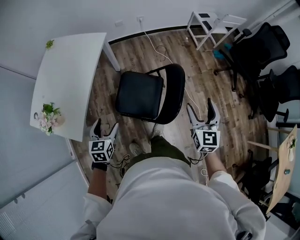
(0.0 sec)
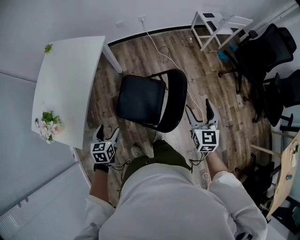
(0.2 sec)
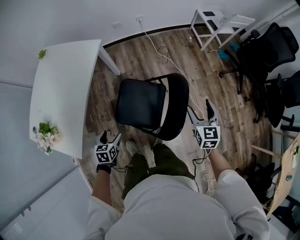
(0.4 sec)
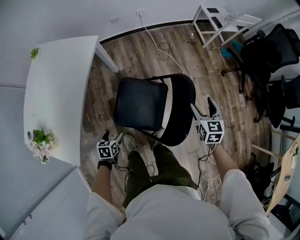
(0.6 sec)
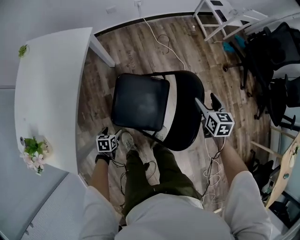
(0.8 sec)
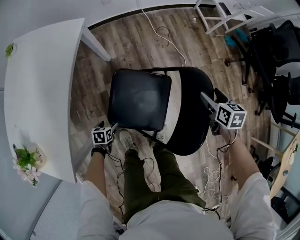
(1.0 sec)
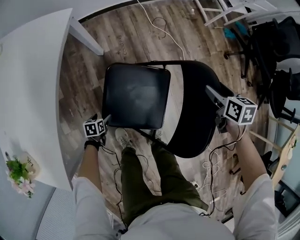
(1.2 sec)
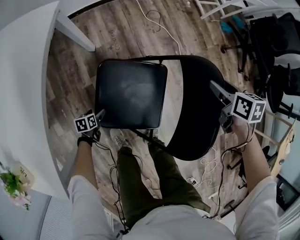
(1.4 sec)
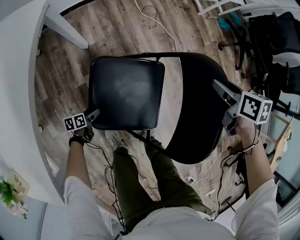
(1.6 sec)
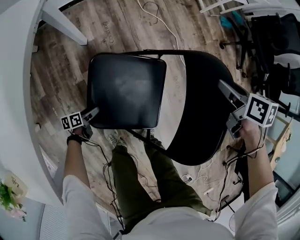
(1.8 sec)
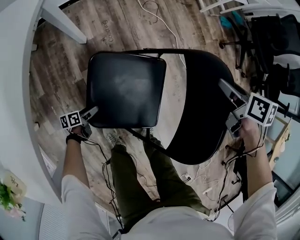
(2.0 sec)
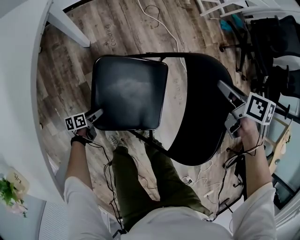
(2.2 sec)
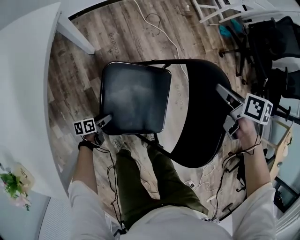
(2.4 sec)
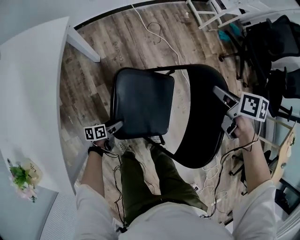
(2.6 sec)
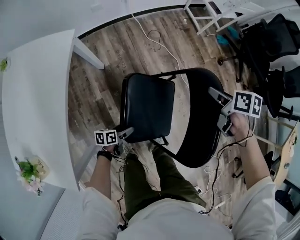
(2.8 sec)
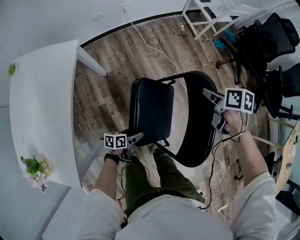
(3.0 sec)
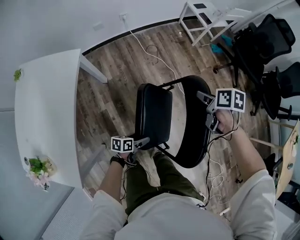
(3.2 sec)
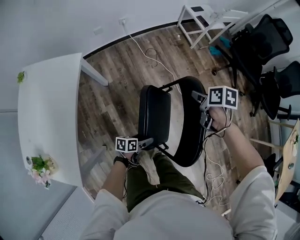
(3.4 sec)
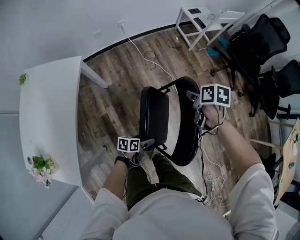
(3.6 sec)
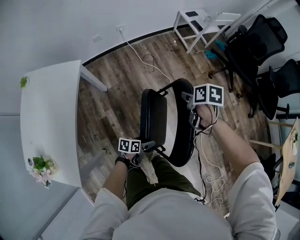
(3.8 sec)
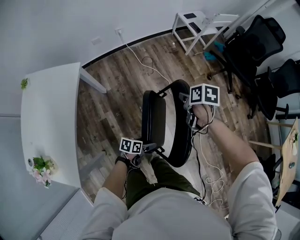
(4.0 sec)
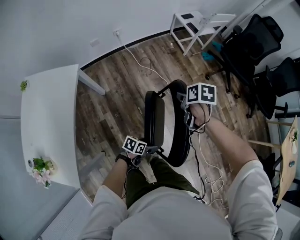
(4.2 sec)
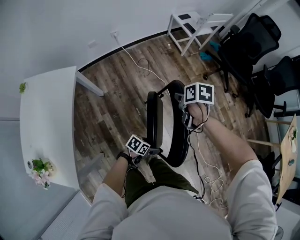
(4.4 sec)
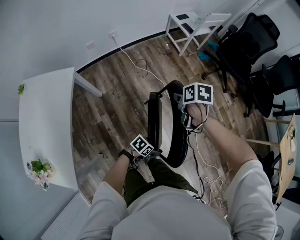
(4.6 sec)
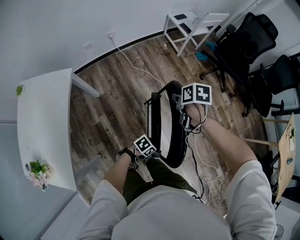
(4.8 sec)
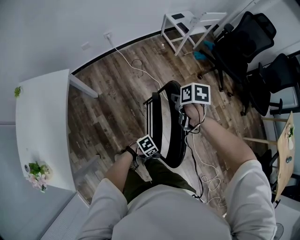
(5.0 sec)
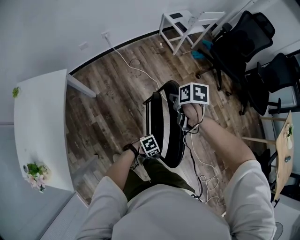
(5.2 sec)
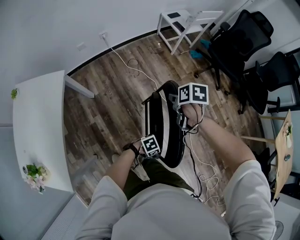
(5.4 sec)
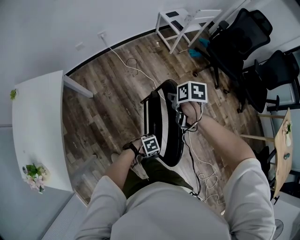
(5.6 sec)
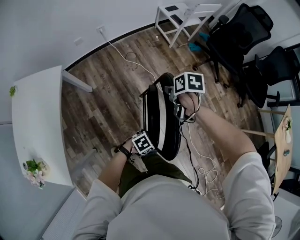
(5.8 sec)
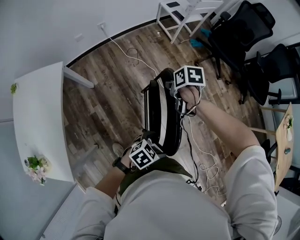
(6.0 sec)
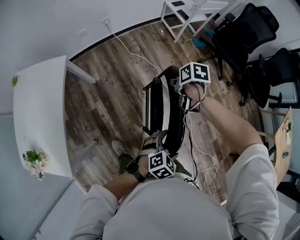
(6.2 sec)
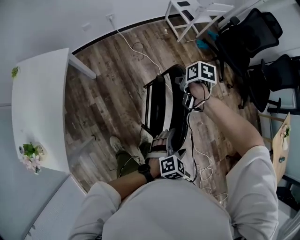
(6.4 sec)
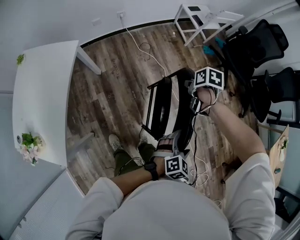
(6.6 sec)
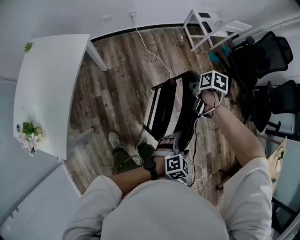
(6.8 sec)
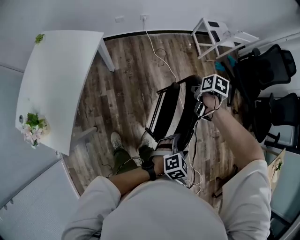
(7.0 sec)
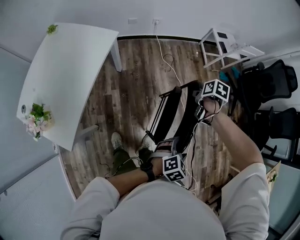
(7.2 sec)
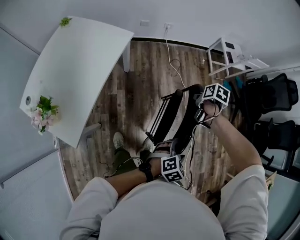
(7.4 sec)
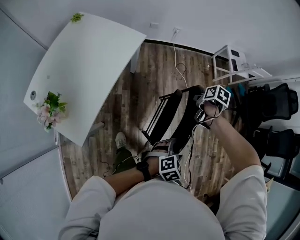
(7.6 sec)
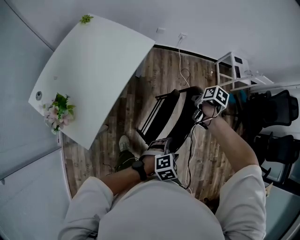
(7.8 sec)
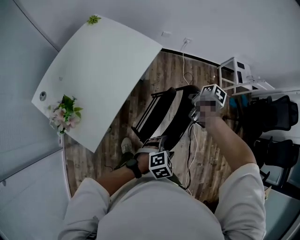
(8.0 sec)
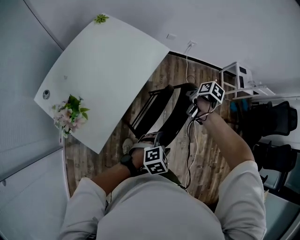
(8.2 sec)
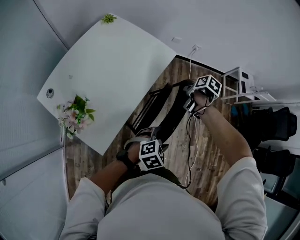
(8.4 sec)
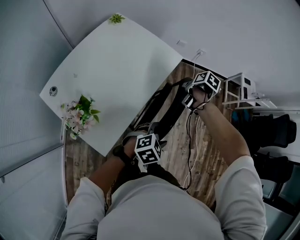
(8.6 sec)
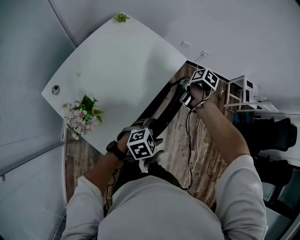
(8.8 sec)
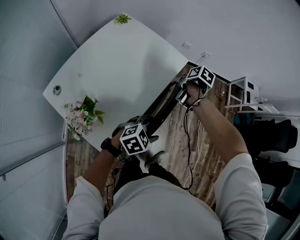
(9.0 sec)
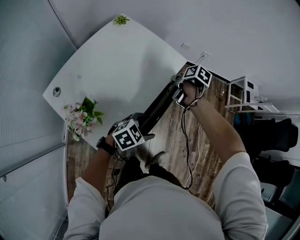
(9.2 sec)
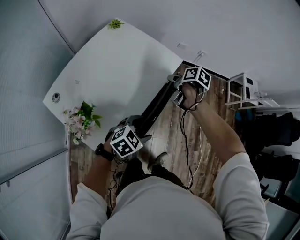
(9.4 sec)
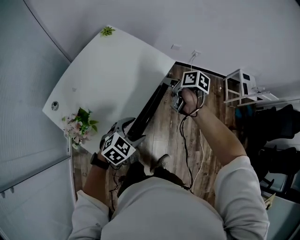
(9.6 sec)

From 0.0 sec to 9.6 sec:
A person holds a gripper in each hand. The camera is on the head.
From 0.0 sec to 1.6 sec: The left gripper shifts some 60 cm downward, and rotates some 50 degrees. Meanwhile the right gripper shifts approximately 40 cm downward and forward, angles its fingers downward, by some 40 degrees, and closes.
From 1.6 sec to 3.2 sec: The left gripper moves upward and to the right, some 35 cm, and changes its angle by about 20 degrees. Meanwhile the right gripper heads upward, covering roughly 15 cm.
From 3.2 sec to 4.8 sec: The right gripper ends up roughly 5 cm from where it was. Meanwhile the left gripper shifts by some 20 cm, and changes its angle by approximately 50 degrees.
From 4.8 sec to 6.4 sec: The left gripper goes about 20 cm upward, and changes its angle by roughly 50 degrees.
From 6.4 sec to 8.0 sec: The grippers both shift to the left by about 35 cm. The left gripper closes up.
From 8.0 sec to 9.6 sec: The two grippers go approximately 25 cm to the left. The right gripper rotates about 30 degrees, and opens up.

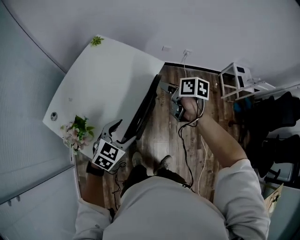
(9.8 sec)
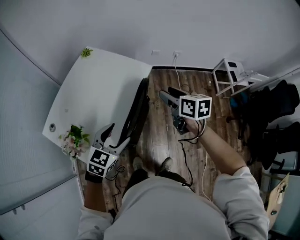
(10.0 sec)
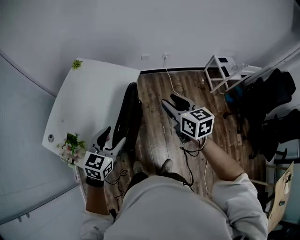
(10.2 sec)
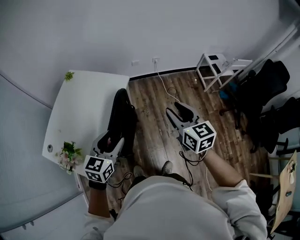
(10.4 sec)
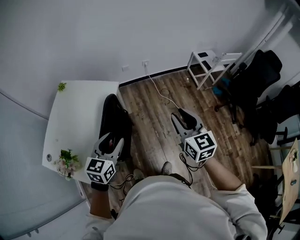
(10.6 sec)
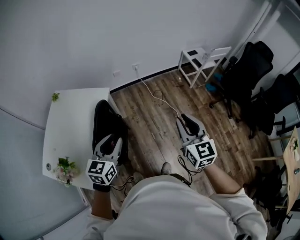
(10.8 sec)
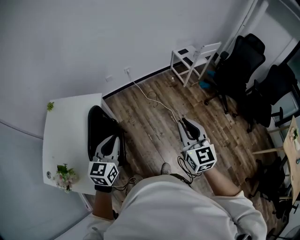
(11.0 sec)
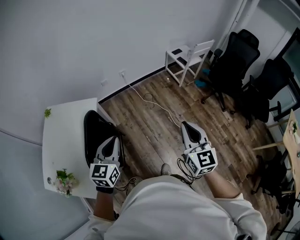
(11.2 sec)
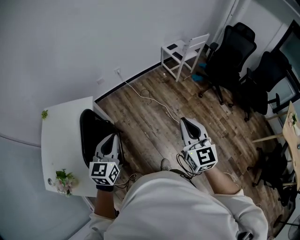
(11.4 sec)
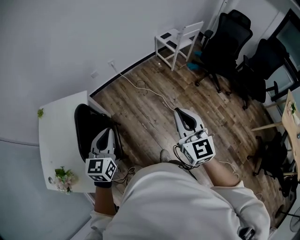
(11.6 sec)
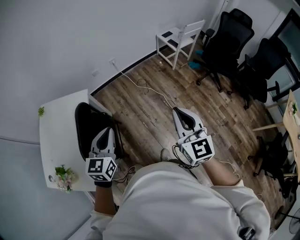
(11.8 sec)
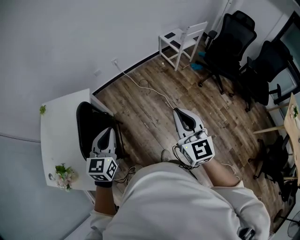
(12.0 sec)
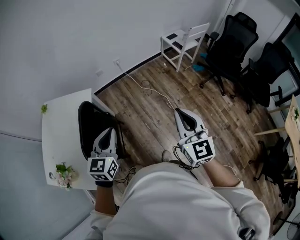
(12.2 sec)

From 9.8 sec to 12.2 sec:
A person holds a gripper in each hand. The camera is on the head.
From 9.8 sec to 11.0 sec: The left gripper moves approximately 25 cm, swivels some 20 degrees, and closes. The right gripper shifts by about 50 cm, tips its fingers upward by about 30 degrees, and closes.
From 11.0 sec to 12.2 sec: Both grippers travel together to the right, roughly 5 cm.

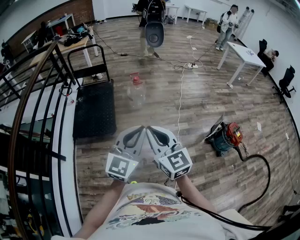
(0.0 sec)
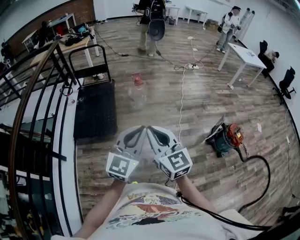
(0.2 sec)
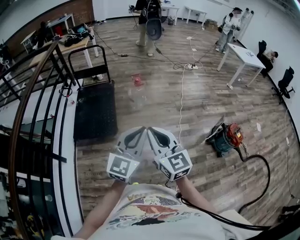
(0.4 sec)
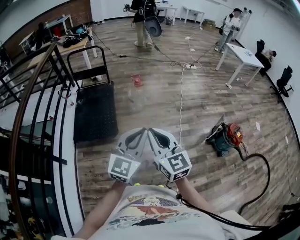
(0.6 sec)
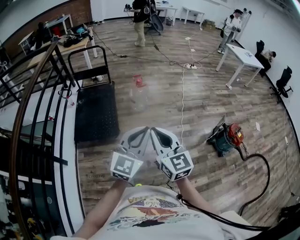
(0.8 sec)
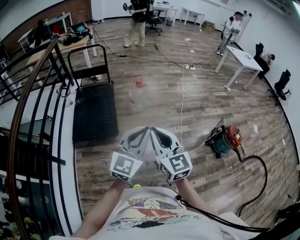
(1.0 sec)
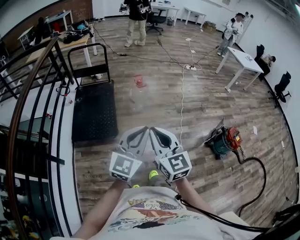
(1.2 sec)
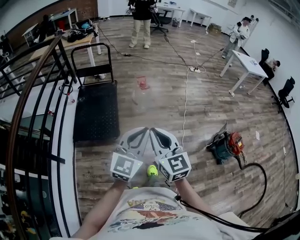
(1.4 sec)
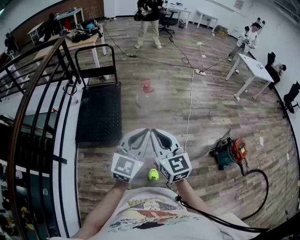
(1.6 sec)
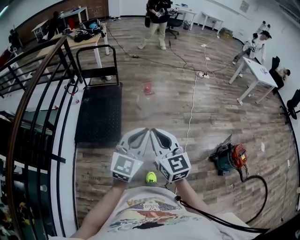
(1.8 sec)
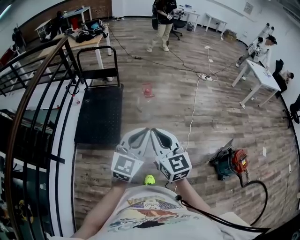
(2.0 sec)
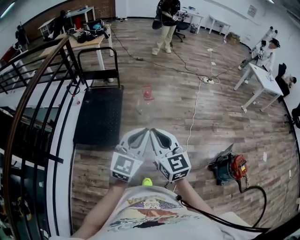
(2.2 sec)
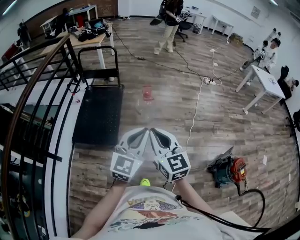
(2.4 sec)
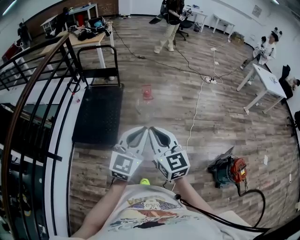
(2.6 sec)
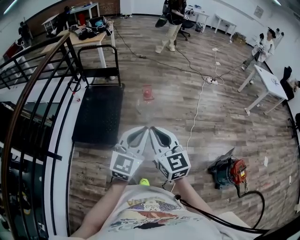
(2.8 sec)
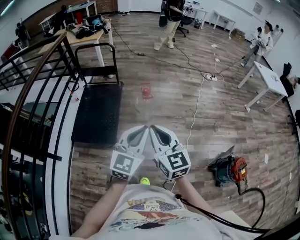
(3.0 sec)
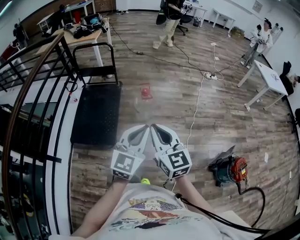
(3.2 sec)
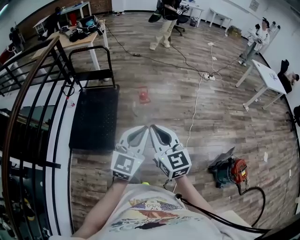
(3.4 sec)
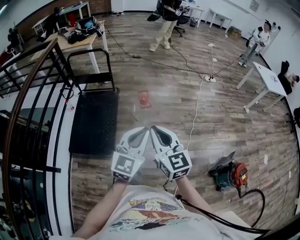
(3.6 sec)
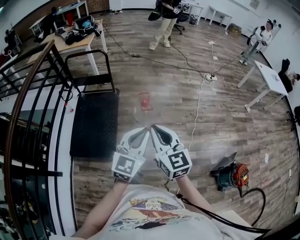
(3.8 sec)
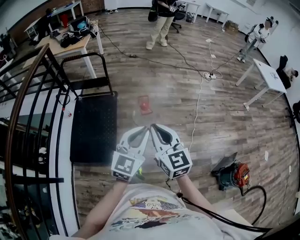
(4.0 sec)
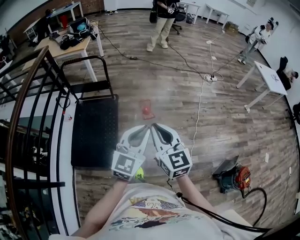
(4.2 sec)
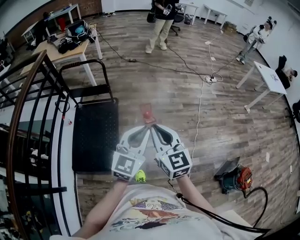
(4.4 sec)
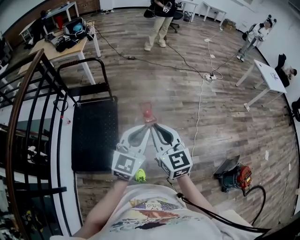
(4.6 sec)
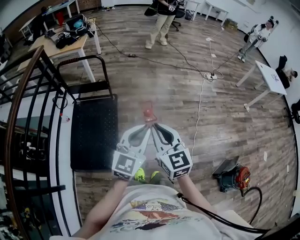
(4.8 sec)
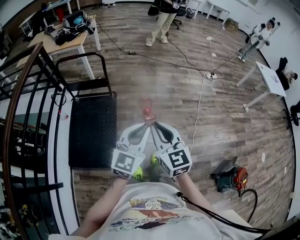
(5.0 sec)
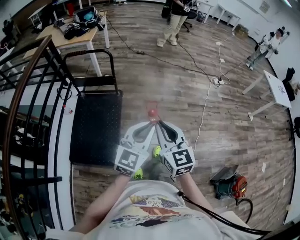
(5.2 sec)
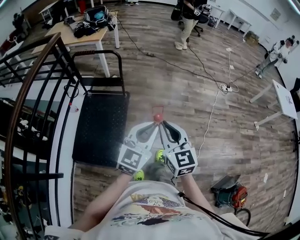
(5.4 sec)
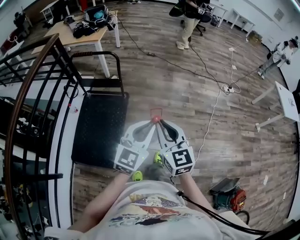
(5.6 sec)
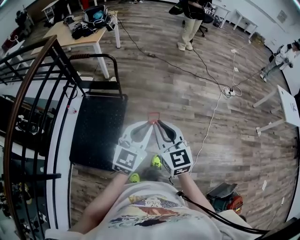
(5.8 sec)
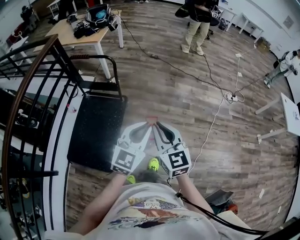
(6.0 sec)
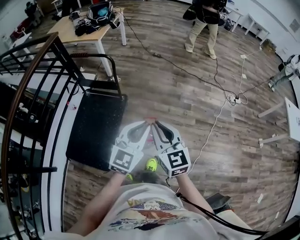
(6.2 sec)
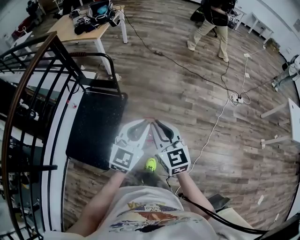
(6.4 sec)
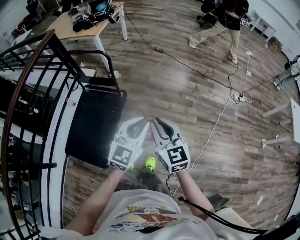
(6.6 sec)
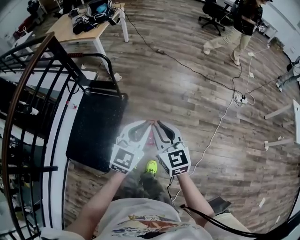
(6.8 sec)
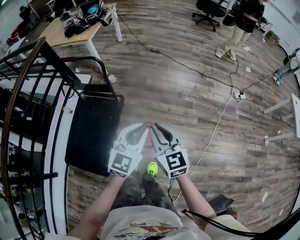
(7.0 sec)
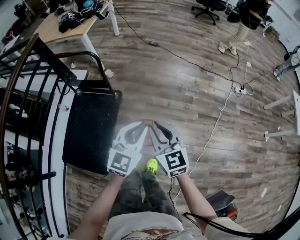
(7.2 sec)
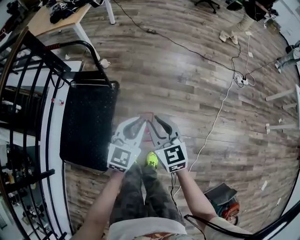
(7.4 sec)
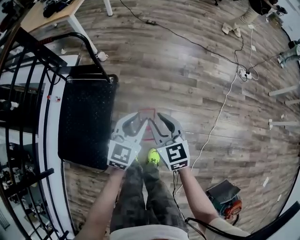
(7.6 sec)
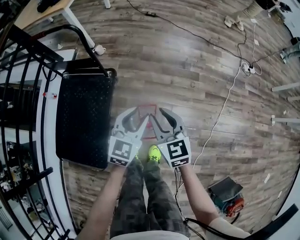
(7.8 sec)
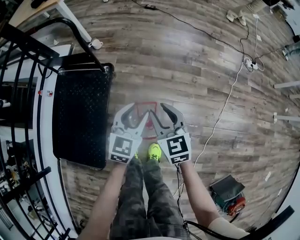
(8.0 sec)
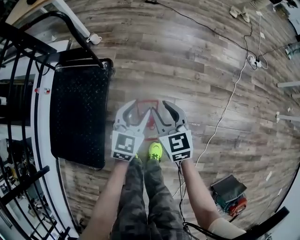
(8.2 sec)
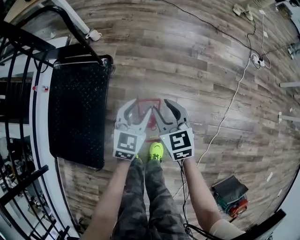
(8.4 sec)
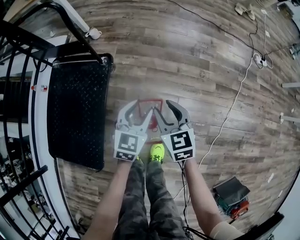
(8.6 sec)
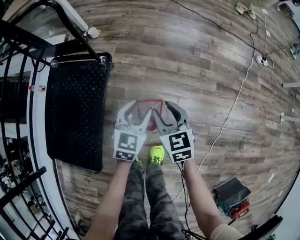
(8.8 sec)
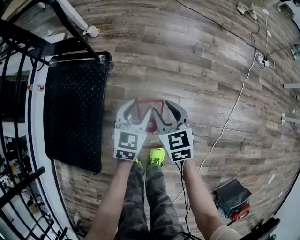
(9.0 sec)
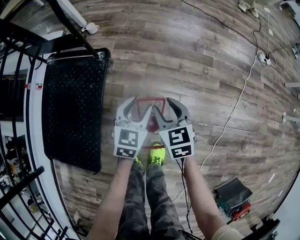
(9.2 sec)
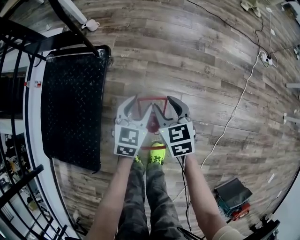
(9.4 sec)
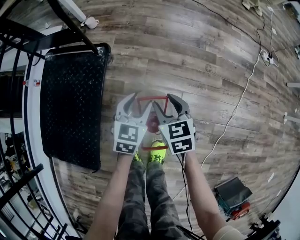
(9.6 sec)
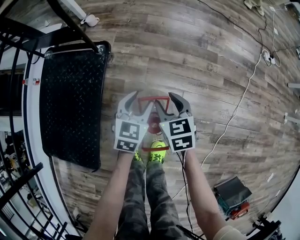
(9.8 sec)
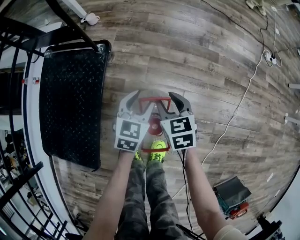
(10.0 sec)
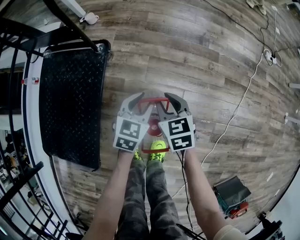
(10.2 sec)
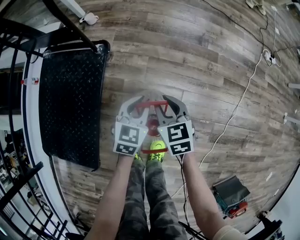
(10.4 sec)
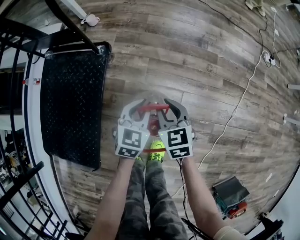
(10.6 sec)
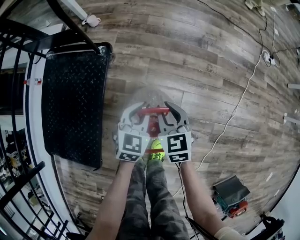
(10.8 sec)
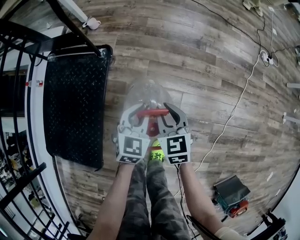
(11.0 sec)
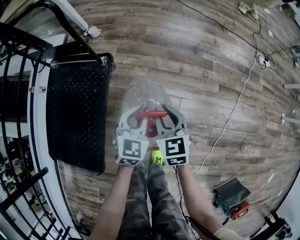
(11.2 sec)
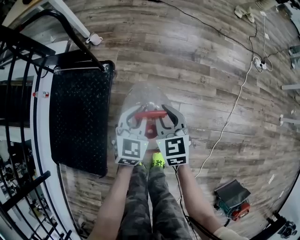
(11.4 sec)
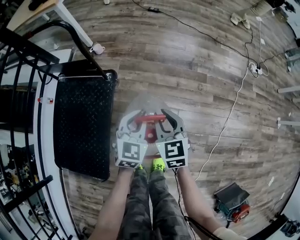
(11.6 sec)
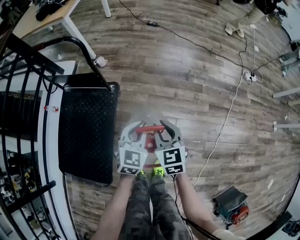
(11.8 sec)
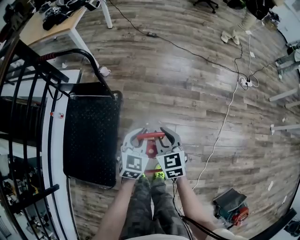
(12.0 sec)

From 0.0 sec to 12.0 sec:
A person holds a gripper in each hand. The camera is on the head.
From 0.0 sec to 1.6 sec: The grippers both shift forward and to the left by about 15 cm.
From 1.6 sec to 3.0 sec: The grippers both shift forward and to the right by some 20 cm.
From 3.0 sec to 4.4 sec: Both grippers move forward, some 30 cm.
From 4.4 sec to 6.0 sec: The two grippers go about 25 cm forward.
From 6.0 sec to 7.6 sec: The grippers both shift downward and forward by about 35 cm. The right gripper opens its fingers.
From 7.6 sec to 9.0 sec: The two grippers go some 30 cm downward. The left gripper opens its fingers.
From 9.0 sec to 10.4 sec: Both grippers travel together downward, some 5 cm. The left gripper closes up.
From 10.4 sec to 12.0 sec: Both grippers travel together upward, approximately 30 cm.
